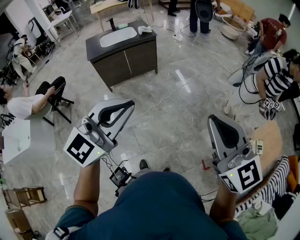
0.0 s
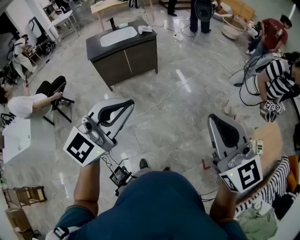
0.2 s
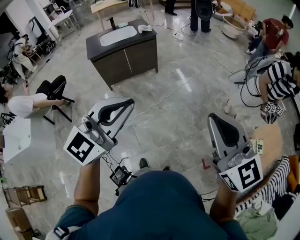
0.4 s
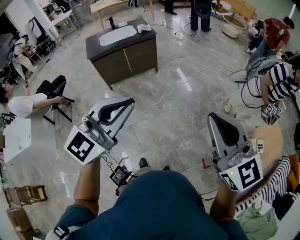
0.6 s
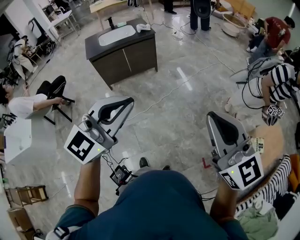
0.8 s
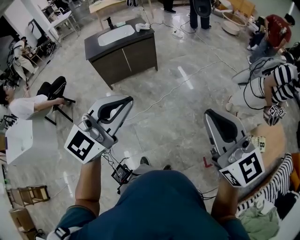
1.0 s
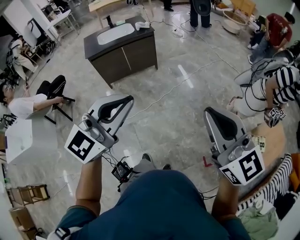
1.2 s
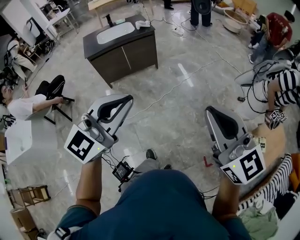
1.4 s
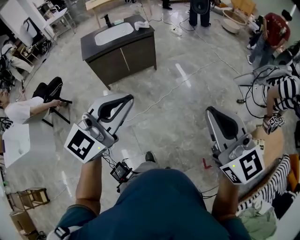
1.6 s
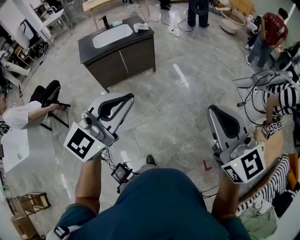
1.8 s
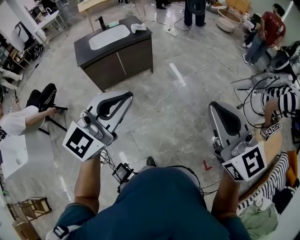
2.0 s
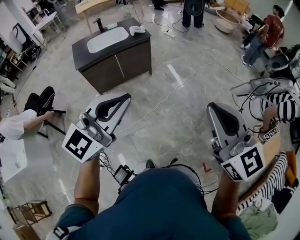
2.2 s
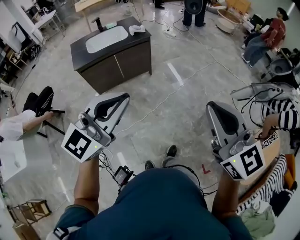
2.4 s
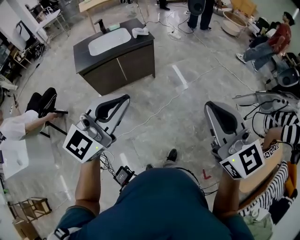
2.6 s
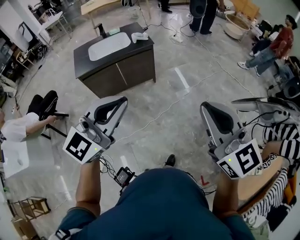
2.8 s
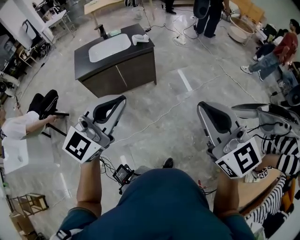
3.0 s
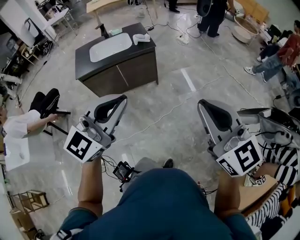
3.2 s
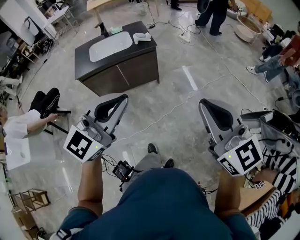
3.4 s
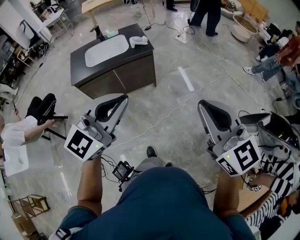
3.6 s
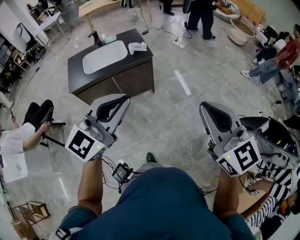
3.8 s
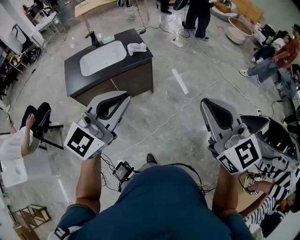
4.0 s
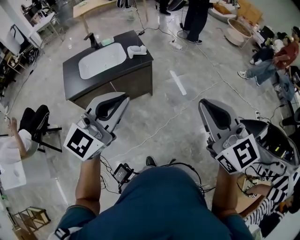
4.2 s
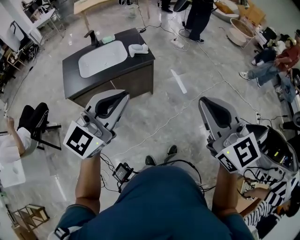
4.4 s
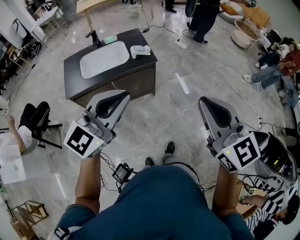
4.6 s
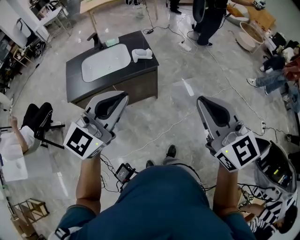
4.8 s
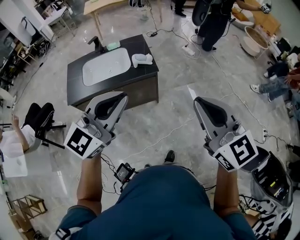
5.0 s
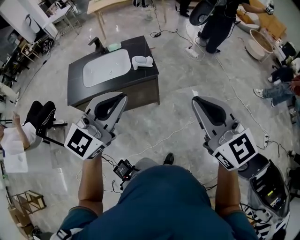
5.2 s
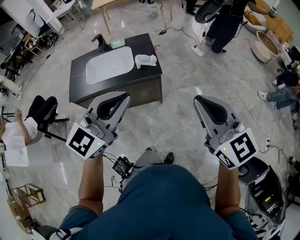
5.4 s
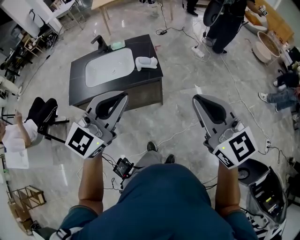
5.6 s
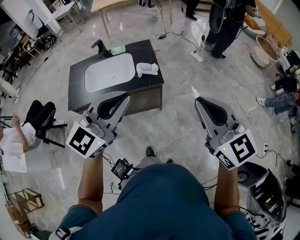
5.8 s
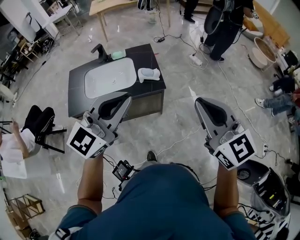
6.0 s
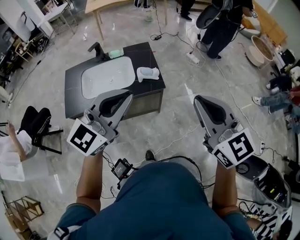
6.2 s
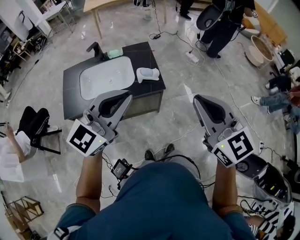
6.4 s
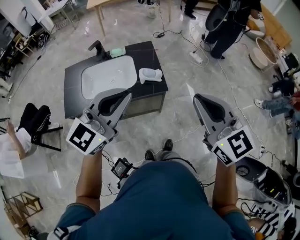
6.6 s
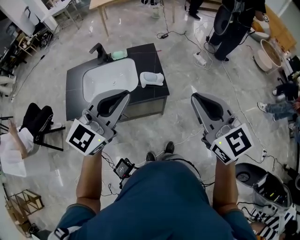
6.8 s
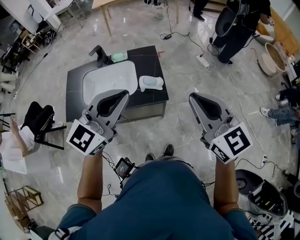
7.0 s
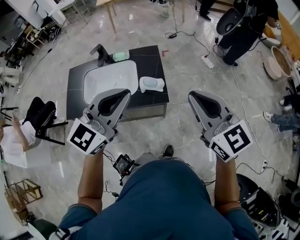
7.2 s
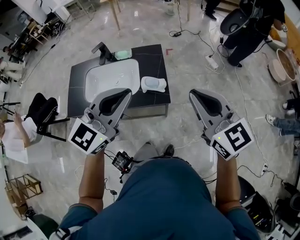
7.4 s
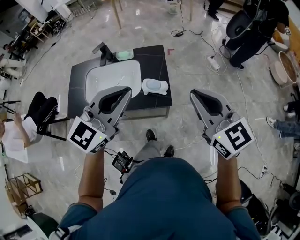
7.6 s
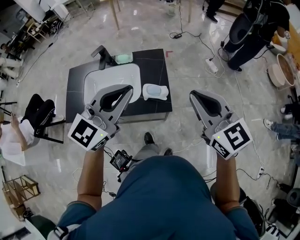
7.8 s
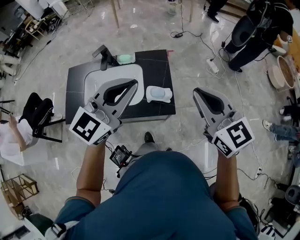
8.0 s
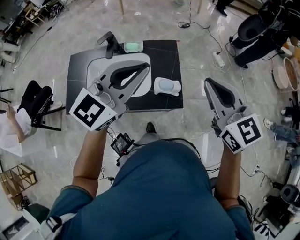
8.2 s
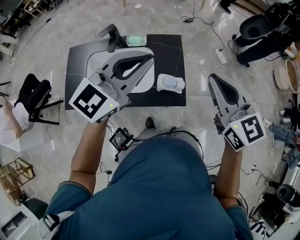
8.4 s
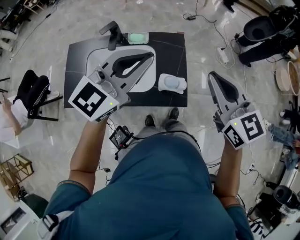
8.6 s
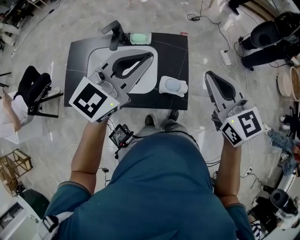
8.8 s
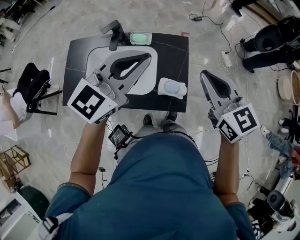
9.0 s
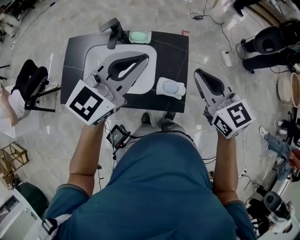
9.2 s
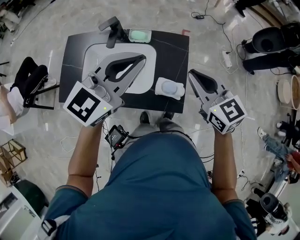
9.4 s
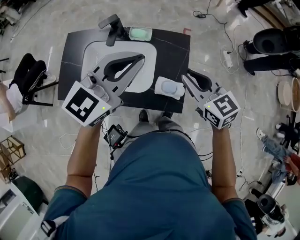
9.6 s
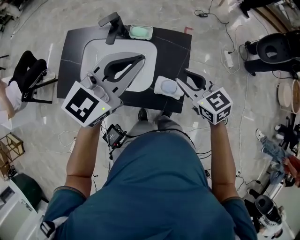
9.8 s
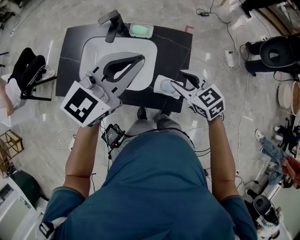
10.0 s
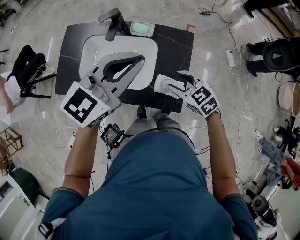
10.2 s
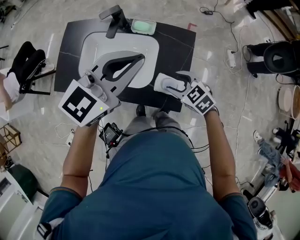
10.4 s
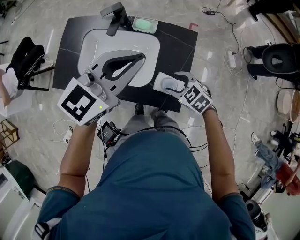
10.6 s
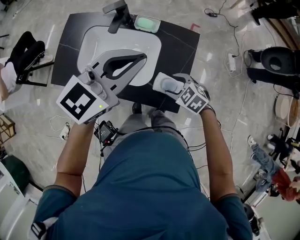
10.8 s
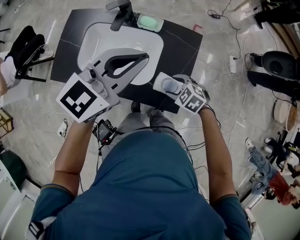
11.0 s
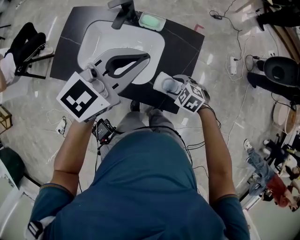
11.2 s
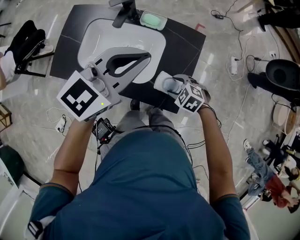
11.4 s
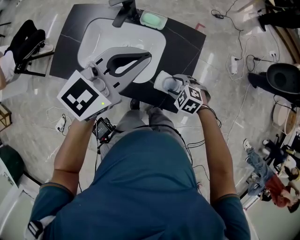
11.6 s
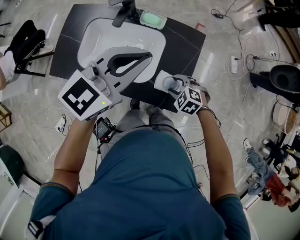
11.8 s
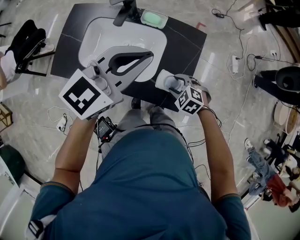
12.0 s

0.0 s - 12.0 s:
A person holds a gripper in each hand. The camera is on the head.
0.0 s - 1.6 s: The two grippers go about 10 cm forward.
1.6 s - 3.0 s: Both grippers move forward, about 25 cm.
3.0 s - 4.4 s: Both grippers move forward, roughly 25 cm.
4.4 s - 6.0 s: The grippers both shift forward by about 25 cm.
6.0 s - 7.6 s: The two grippers go about 20 cm forward.
7.6 s - 9.0 s: The two grippers go approximately 20 cm forward and to the left.
9.0 s - 10.4 s: The right gripper travels downward by roughly 25 cm, tilts its fingers approximately 30 degrees downward, and opens up, while the left gripper heads downward, covering approximately 5 cm.
10.4 s - 12.0 s: The right gripper goes approximately 10 cm downward, and rotates approximately 30 degrees.

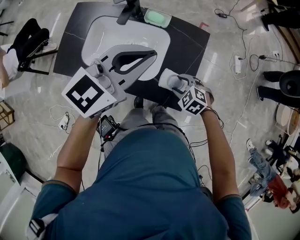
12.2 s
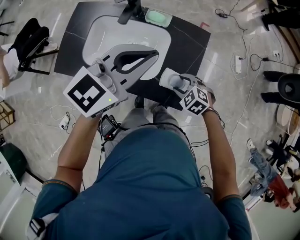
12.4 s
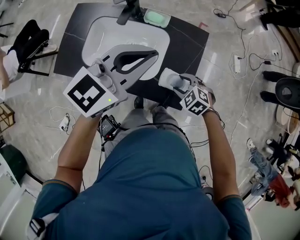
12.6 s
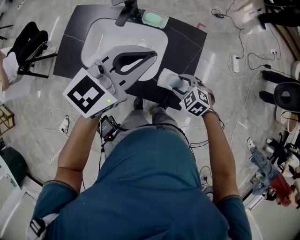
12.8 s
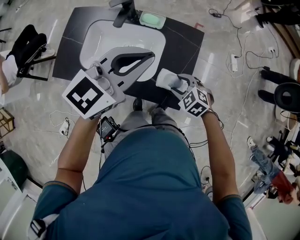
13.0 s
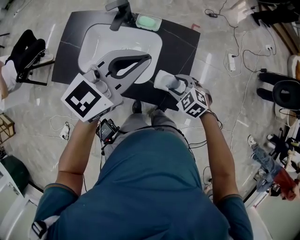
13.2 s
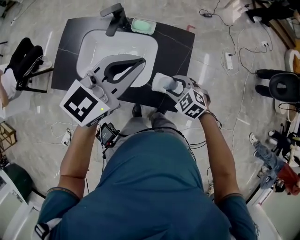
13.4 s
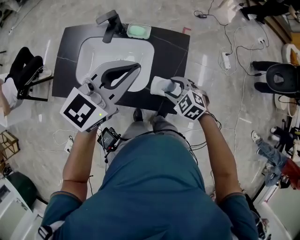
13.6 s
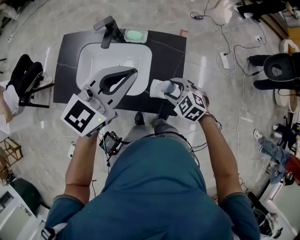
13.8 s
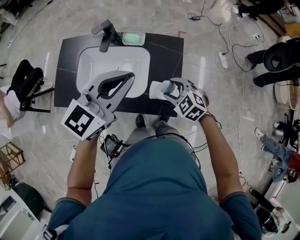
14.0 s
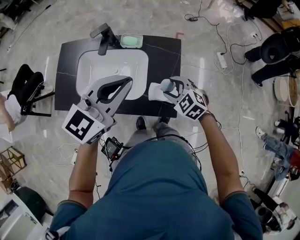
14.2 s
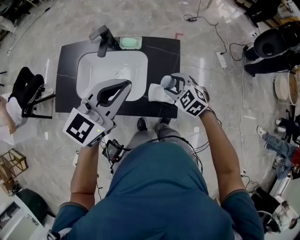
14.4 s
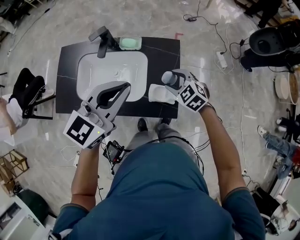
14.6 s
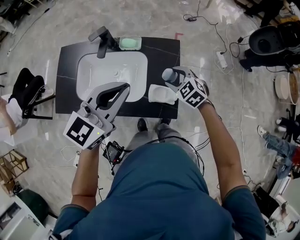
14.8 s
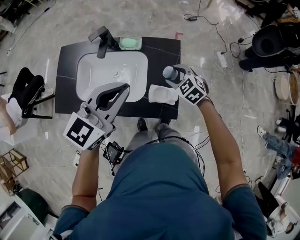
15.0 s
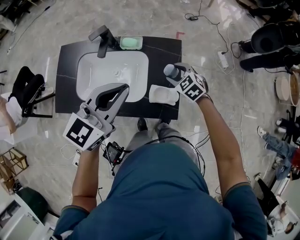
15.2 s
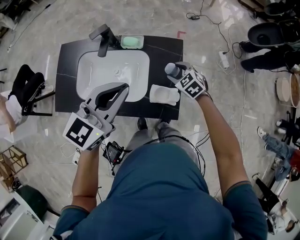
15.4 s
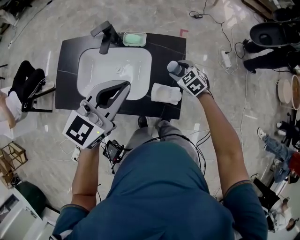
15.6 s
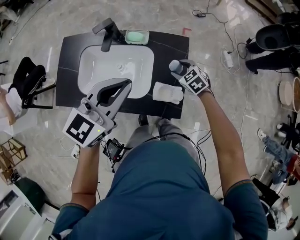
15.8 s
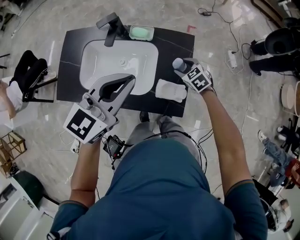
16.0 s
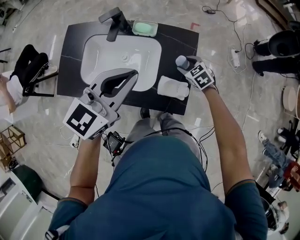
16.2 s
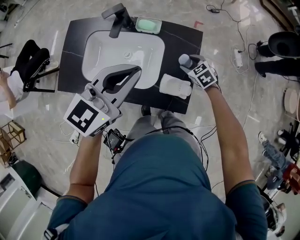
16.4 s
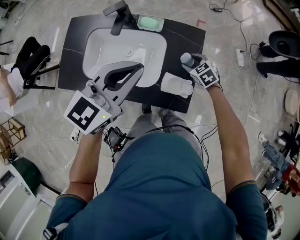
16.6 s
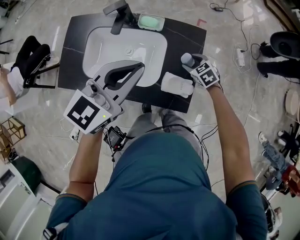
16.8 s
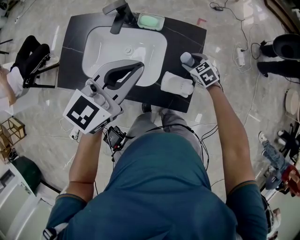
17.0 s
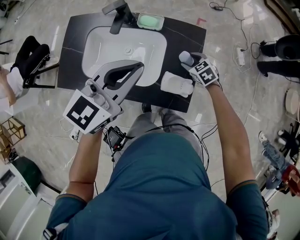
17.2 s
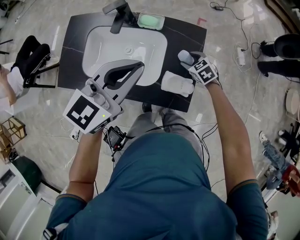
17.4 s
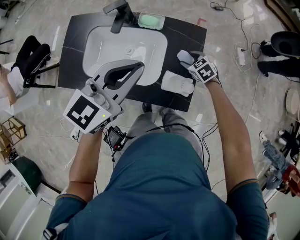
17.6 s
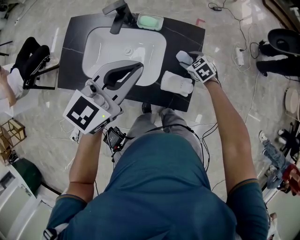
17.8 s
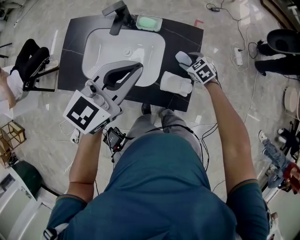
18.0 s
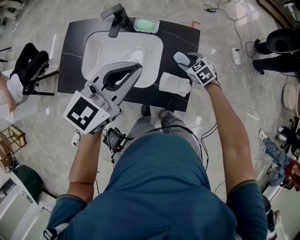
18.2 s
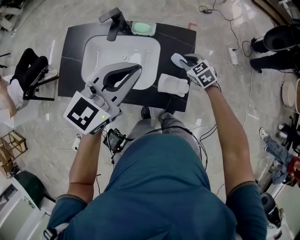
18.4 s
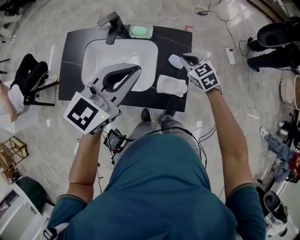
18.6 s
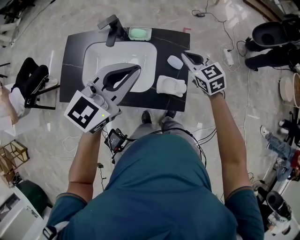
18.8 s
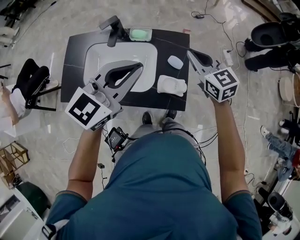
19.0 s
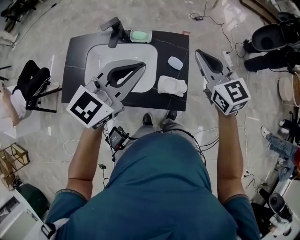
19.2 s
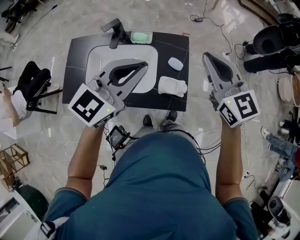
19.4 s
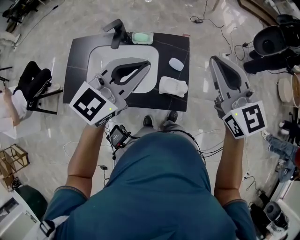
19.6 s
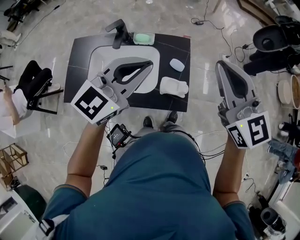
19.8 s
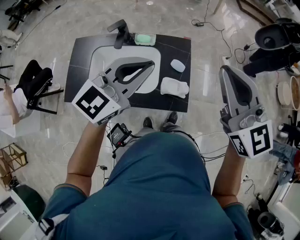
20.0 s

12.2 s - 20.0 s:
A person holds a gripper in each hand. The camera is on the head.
12.2 s - 13.8 s: The right gripper moves upward, roughly 10 cm.
13.8 s - 15.4 s: The right gripper travels forward by about 10 cm.
15.4 s - 16.8 s: The right gripper travels downward by roughly 10 cm.
16.8 s - 18.4 s: The right gripper is displaced upward by about 5 cm, and closes.
18.4 s - 20.0 s: The right gripper moves upward, about 40 cm, and tilts its fingers about 50 degrees upward, while the left gripper is displaced upward by some 5 cm.

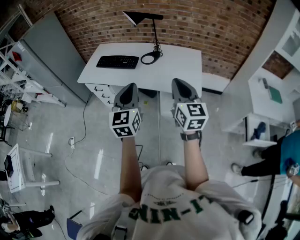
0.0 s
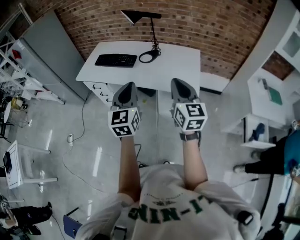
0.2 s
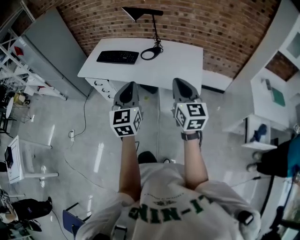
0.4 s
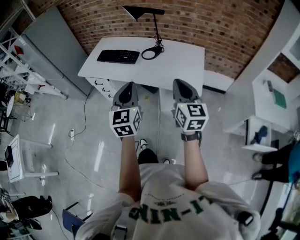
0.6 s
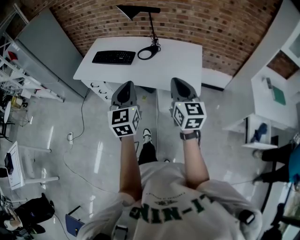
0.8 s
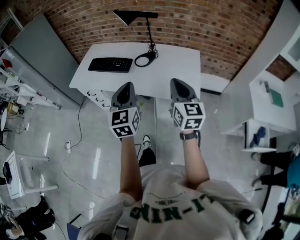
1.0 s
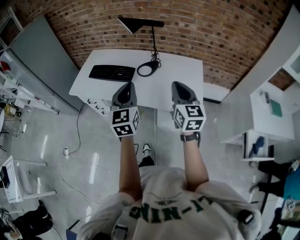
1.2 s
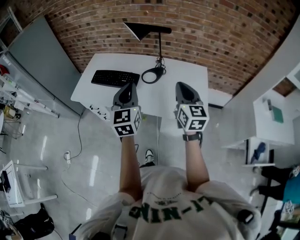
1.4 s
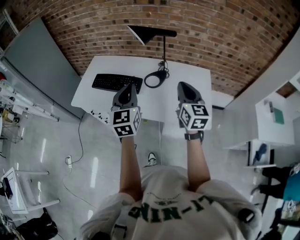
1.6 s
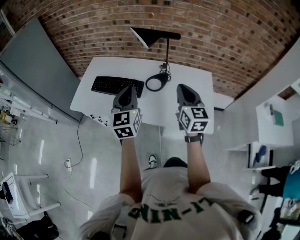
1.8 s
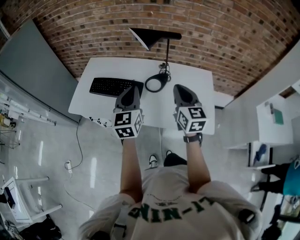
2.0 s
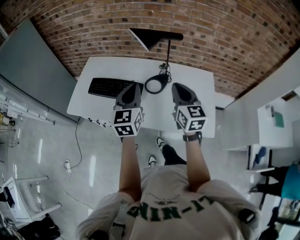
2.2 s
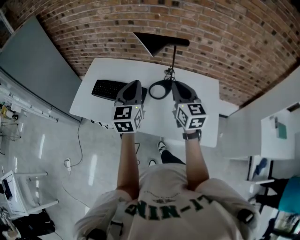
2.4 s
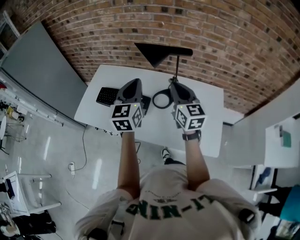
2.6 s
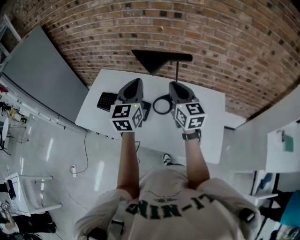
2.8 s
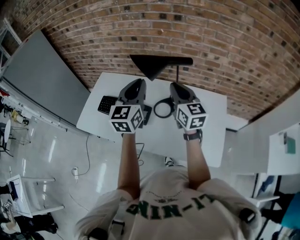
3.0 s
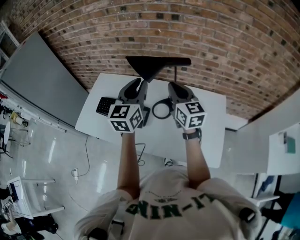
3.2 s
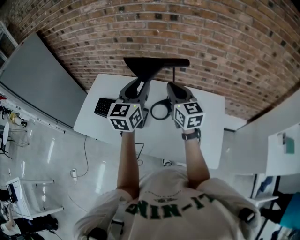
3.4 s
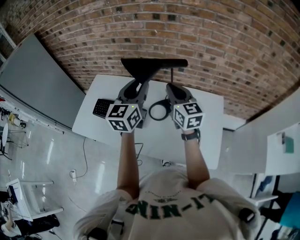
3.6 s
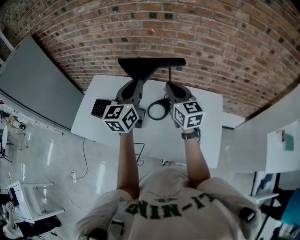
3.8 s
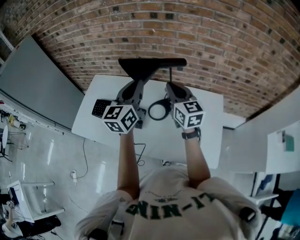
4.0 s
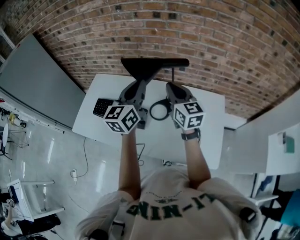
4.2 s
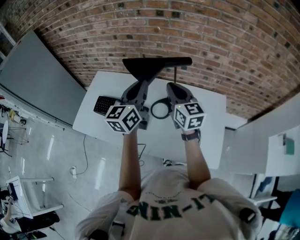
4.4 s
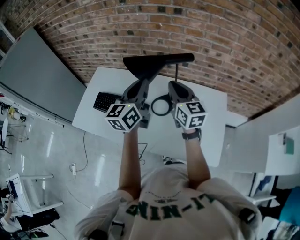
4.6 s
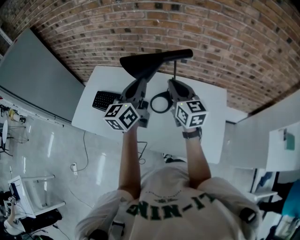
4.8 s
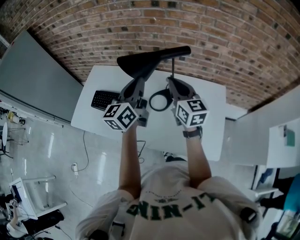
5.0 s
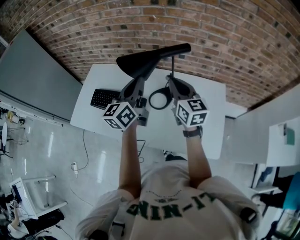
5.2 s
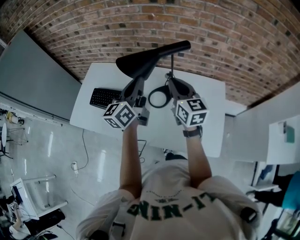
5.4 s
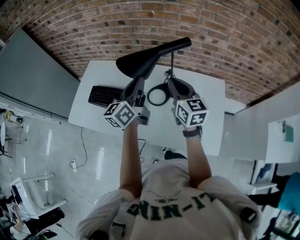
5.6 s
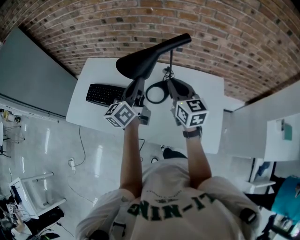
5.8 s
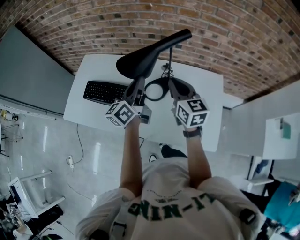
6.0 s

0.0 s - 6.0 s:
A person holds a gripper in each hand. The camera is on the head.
0.0 s - 1.6 s: The grippers both shift forward by approximately 30 cm.
1.6 s - 3.0 s: The two grippers go about 25 cm forward.
3.0 s - 4.4 s: The left gripper opens, then closes again.
4.4 s - 6.0 s: The left gripper goes approximately 10 cm downward, and swivels about 30 degrees. Meanwhile the right gripper shifts some 5 cm downward.
